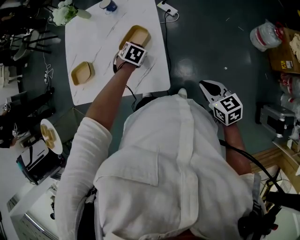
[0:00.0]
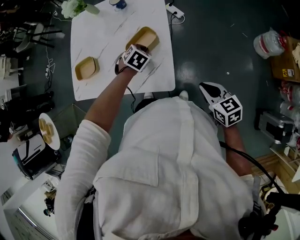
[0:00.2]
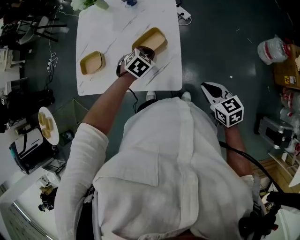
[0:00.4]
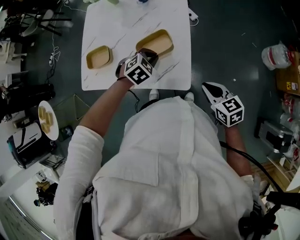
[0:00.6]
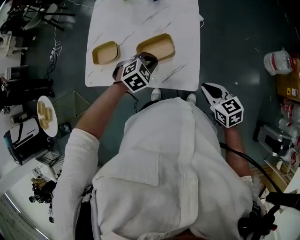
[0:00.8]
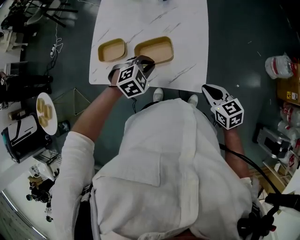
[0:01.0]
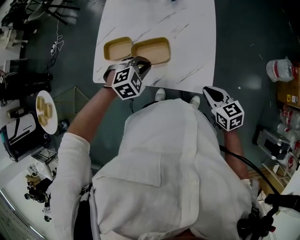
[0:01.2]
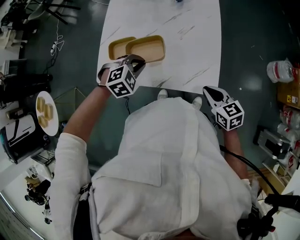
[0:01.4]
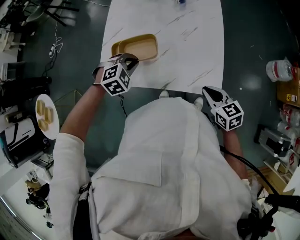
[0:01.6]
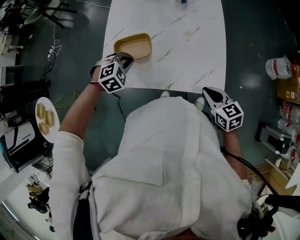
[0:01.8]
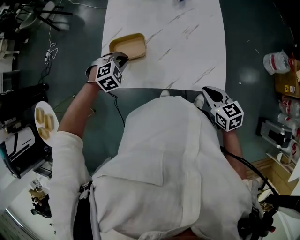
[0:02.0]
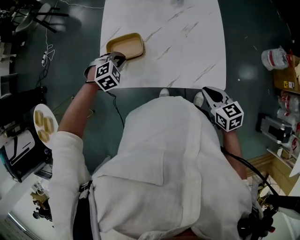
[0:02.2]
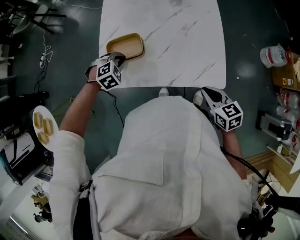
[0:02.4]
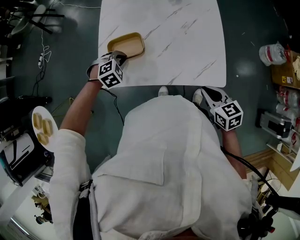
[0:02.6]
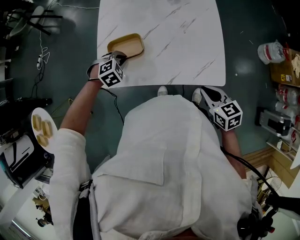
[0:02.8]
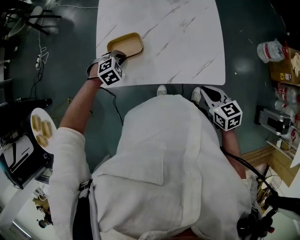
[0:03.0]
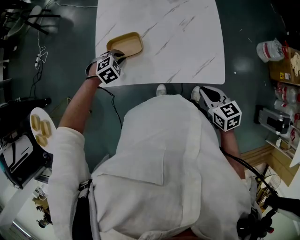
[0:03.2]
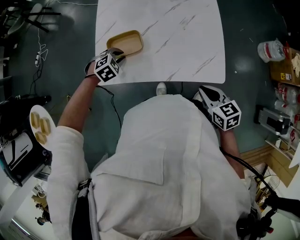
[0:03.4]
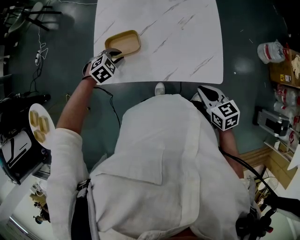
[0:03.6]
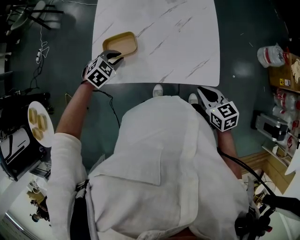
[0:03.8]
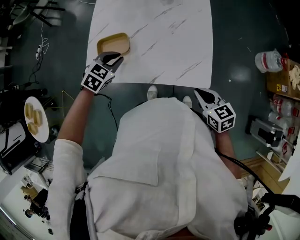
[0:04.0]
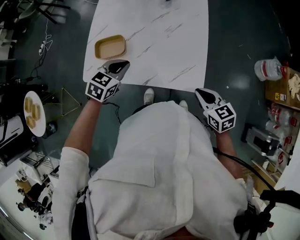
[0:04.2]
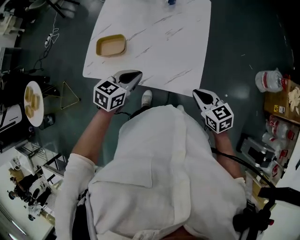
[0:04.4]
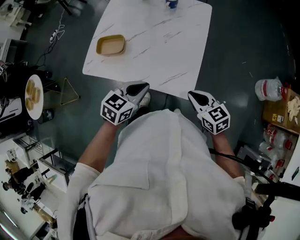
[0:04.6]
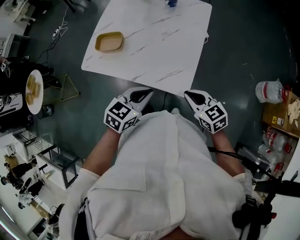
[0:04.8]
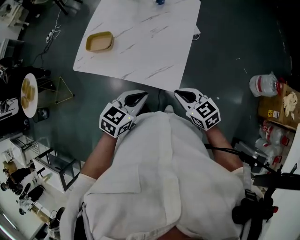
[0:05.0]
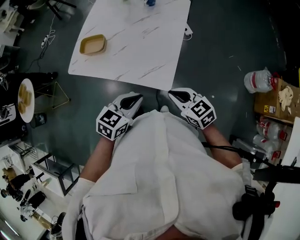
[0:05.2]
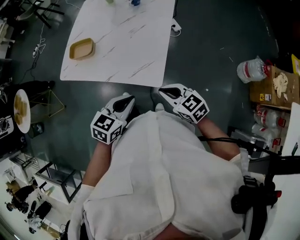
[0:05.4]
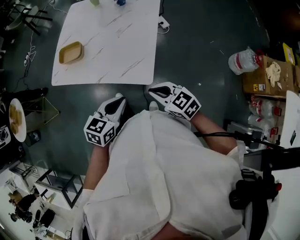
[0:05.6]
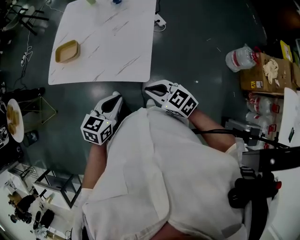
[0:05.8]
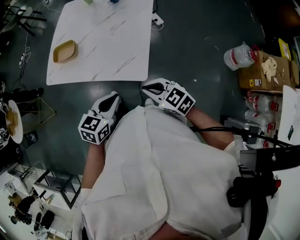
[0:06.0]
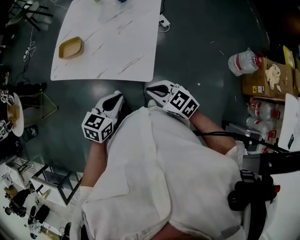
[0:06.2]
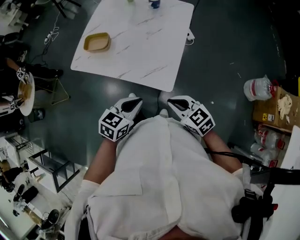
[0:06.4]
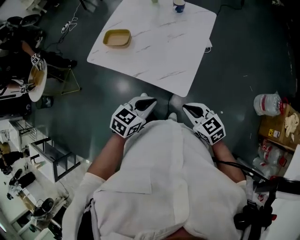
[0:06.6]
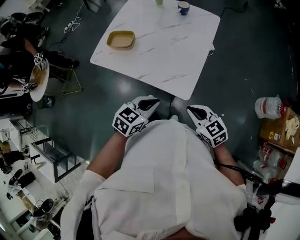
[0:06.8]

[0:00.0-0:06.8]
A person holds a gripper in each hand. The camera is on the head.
0:00.0 to 0:01.4: Both grippers move to the left, some 25 cm. The left gripper rotates approximately 30 degrees.
0:01.4 to 0:02.8: The left gripper heads to the left, downward and forward, covering about 15 cm, while the right gripper travels to the left by approximately 10 cm.
0:02.8 to 0:04.0: The left gripper heads to the right and upward, covering approximately 10 cm, and swivels some 30 degrees. The right gripper is displaced to the right by approximately 5 cm.
0:04.0 to 0:05.4: The right gripper goes approximately 10 cm to the right, and swivels some 30 degrees, while the left gripper heads to the right and backward, covering some 35 cm, and rotates roughly 30 degrees.
0:05.4 to 0:06.8: The grippers stay close to where they were, moving slightly.

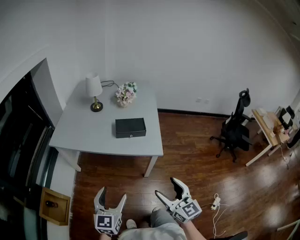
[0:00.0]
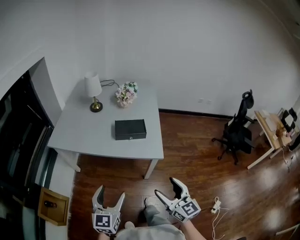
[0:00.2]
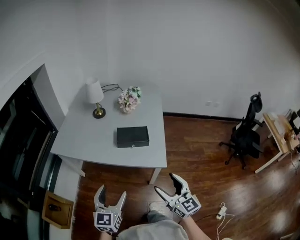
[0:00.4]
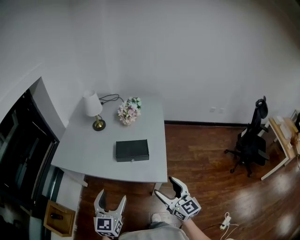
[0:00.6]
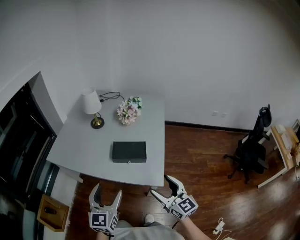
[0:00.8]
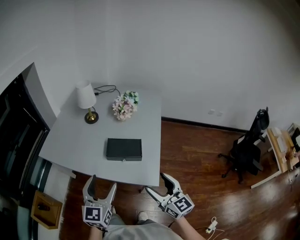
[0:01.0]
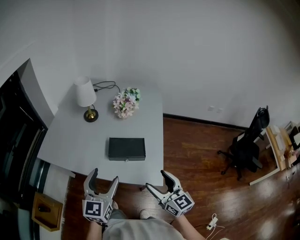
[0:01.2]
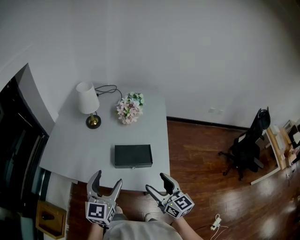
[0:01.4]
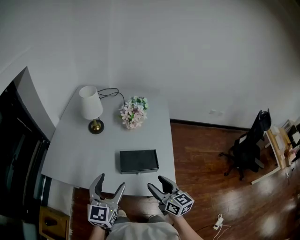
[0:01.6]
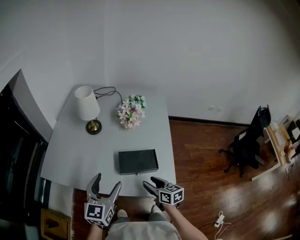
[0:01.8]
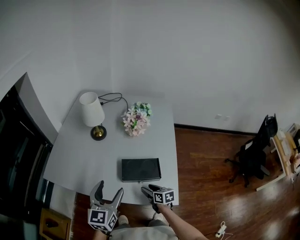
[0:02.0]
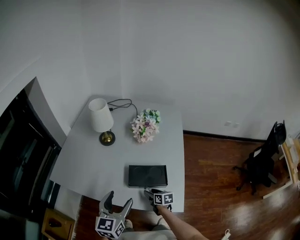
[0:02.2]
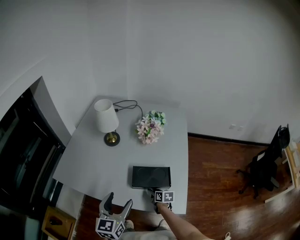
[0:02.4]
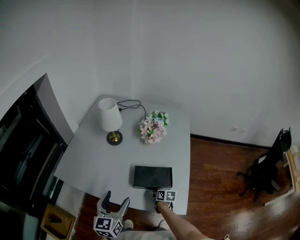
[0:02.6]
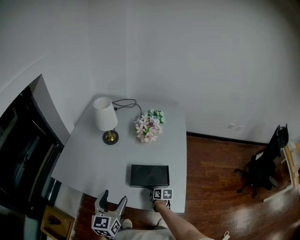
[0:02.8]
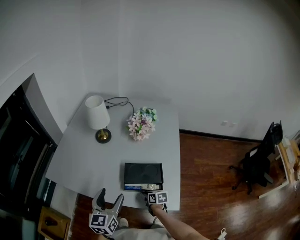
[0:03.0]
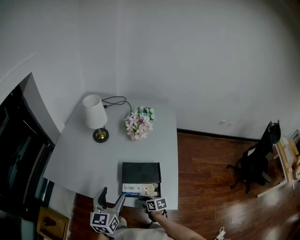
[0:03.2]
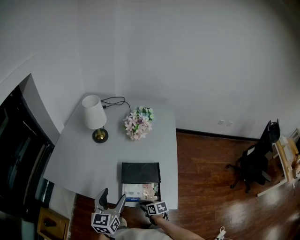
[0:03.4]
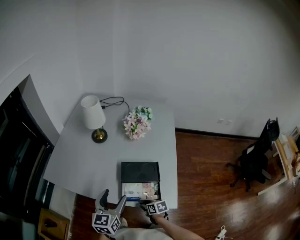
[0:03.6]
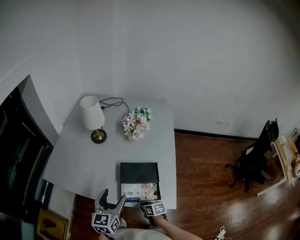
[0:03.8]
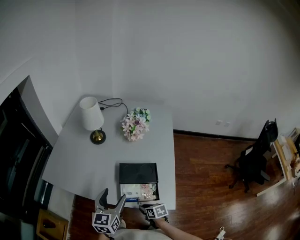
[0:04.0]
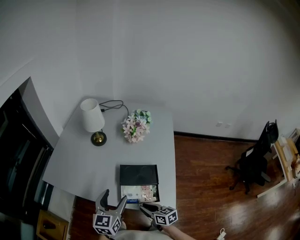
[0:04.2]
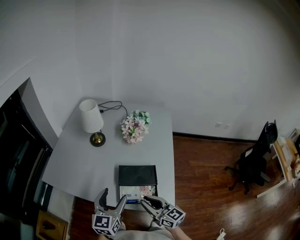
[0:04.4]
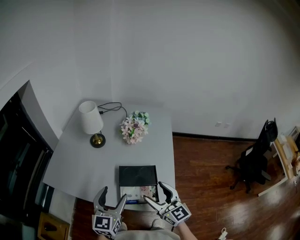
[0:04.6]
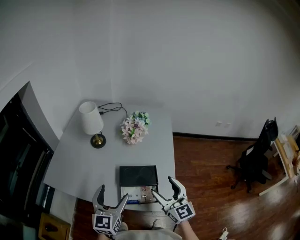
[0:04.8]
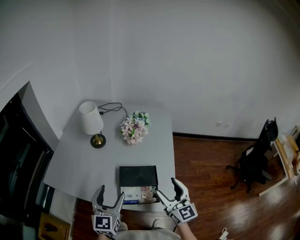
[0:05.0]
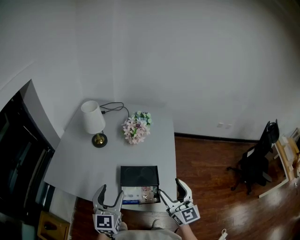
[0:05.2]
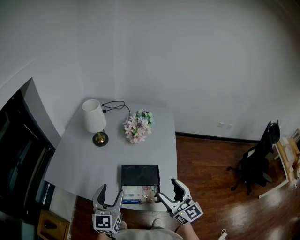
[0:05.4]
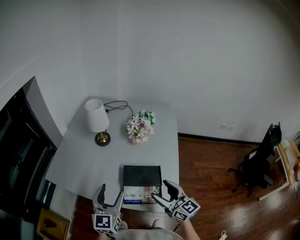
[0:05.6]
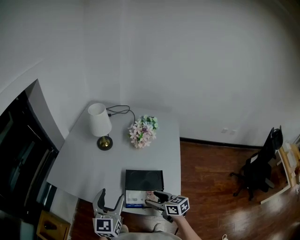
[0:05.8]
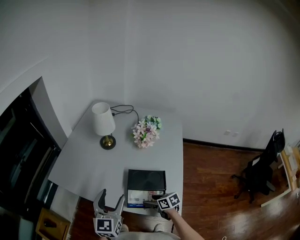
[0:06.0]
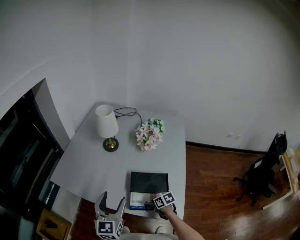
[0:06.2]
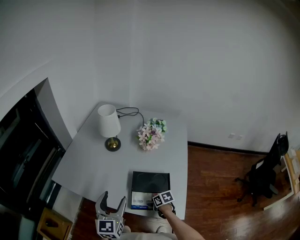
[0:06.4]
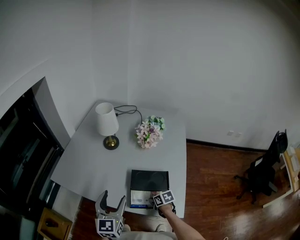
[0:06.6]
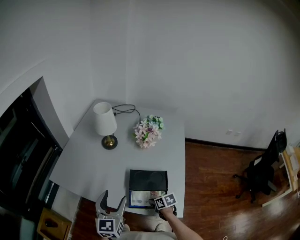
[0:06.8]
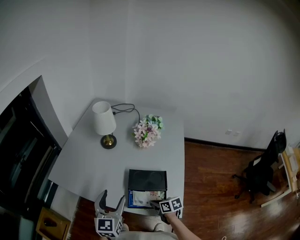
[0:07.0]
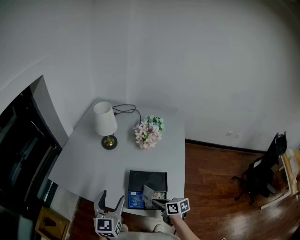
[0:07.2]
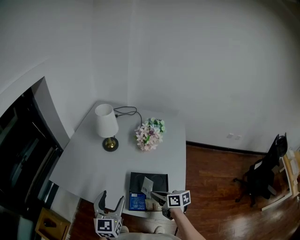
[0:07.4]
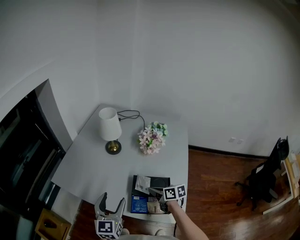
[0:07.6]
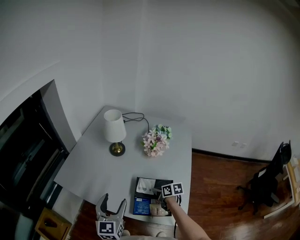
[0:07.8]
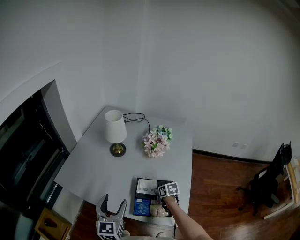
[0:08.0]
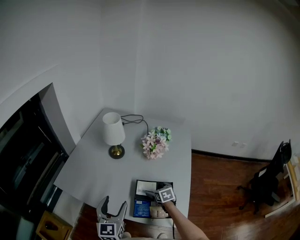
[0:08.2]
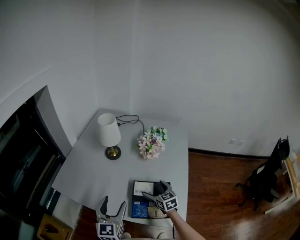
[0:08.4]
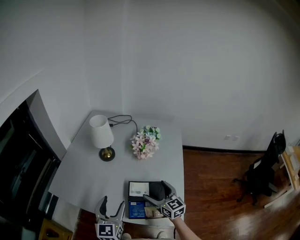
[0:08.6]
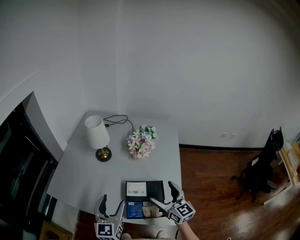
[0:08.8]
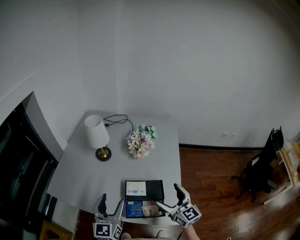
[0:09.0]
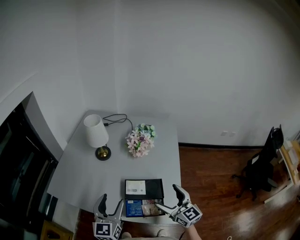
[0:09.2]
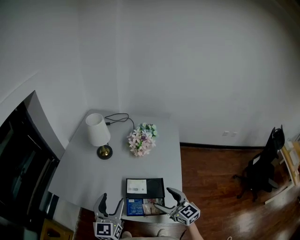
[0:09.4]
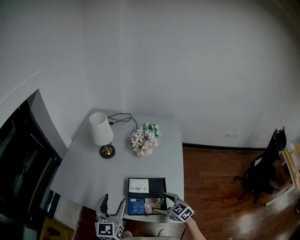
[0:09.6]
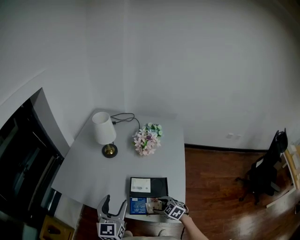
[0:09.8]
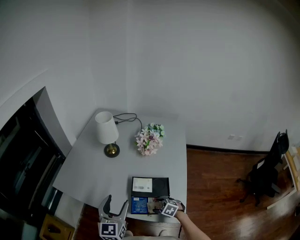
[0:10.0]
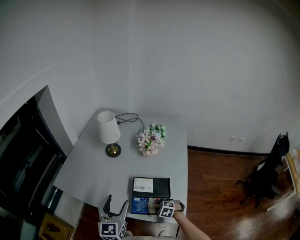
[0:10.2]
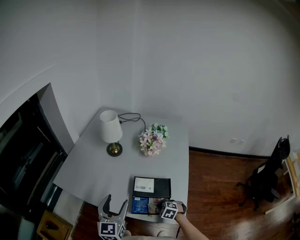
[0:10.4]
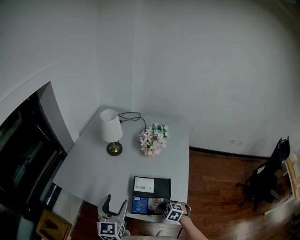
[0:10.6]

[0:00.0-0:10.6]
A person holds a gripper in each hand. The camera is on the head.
0:00.0 to 0:01.6: Both grippers move forward, about 35 cm. The right gripper changes its angle by some 20 degrees.
0:01.6 to 0:03.0: The left gripper travels downward by approximately 5 cm. The right gripper shifts some 30 cm downward, angles its fingers downward, by approximately 30 degrees, and closes its fingers.
0:03.0 to 0:04.6: The left gripper moves roughly 5 cm, while the right gripper goes approximately 30 cm upward, angles its fingers upward, by approximately 50 degrees, and opens.
0:04.6 to 0:06.0: The left gripper moves about 5 cm; the right gripper shifts about 25 cm downward, and angles its fingers downward, by roughly 40 degrees.
0:06.0 to 0:07.6: The right gripper shifts approximately 10 cm upward and forward, and closes up.
0:07.6 to 0:09.0: The left gripper shifts by some 5 cm; the right gripper heads upward, to the right and backward, covering about 20 cm, swivels roughly 60 degrees, and opens its fingers.
0:09.0 to 0:10.6: The right gripper shifts some 25 cm downward, tips its fingers downward by approximately 60 degrees, and closes.

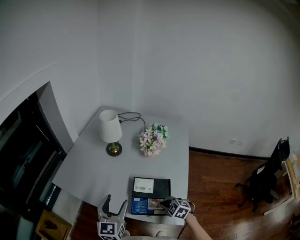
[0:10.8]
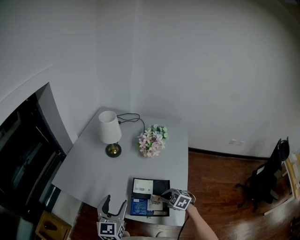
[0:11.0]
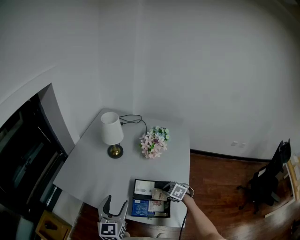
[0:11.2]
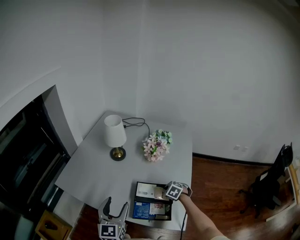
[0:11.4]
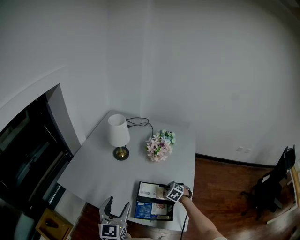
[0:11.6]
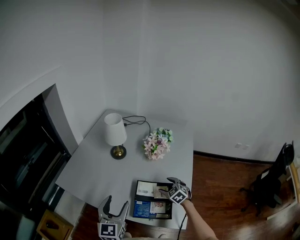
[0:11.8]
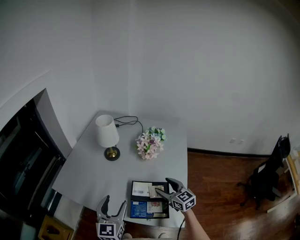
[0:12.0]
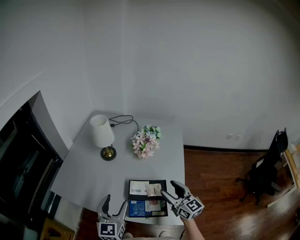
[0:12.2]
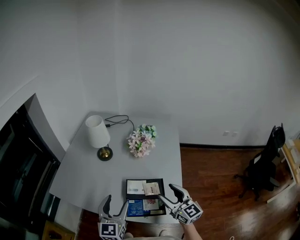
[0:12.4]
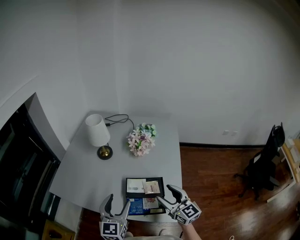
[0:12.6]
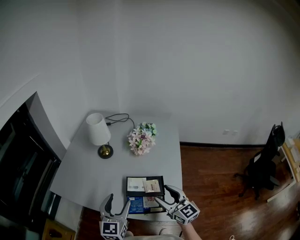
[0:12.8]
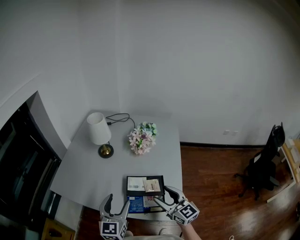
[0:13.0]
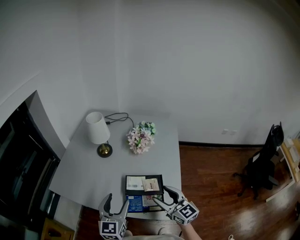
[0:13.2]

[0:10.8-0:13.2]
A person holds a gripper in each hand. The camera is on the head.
0:10.8 to 0:12.0: The right gripper is displaced upward and forward by some 15 cm, tilts its fingers approximately 40 degrees upward, and opens up.
0:12.0 to 0:13.2: The right gripper moves backward and upward, approximately 10 cm.

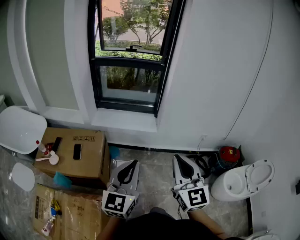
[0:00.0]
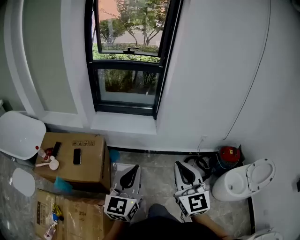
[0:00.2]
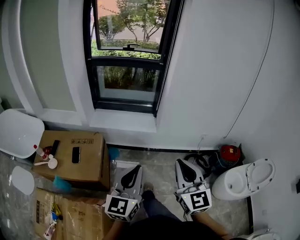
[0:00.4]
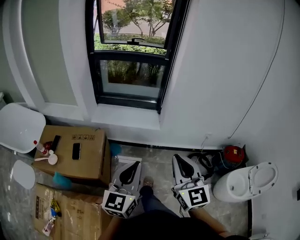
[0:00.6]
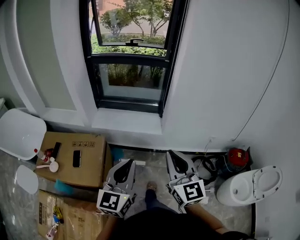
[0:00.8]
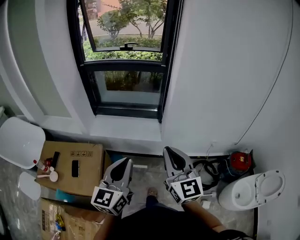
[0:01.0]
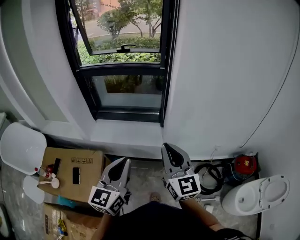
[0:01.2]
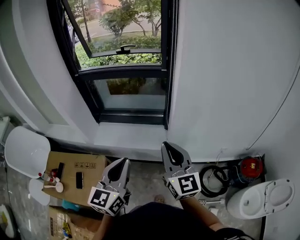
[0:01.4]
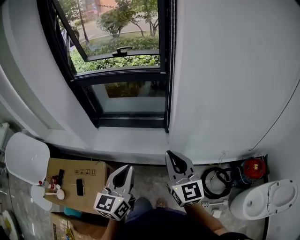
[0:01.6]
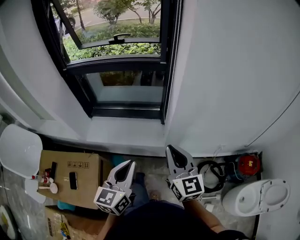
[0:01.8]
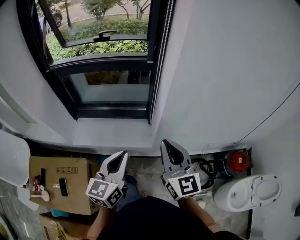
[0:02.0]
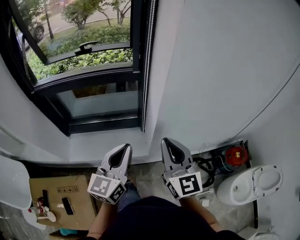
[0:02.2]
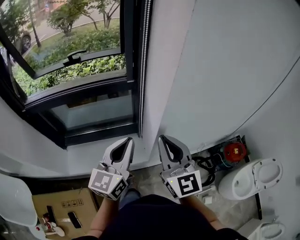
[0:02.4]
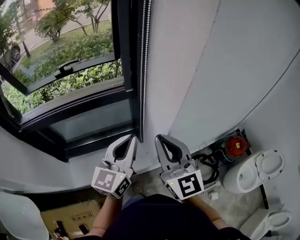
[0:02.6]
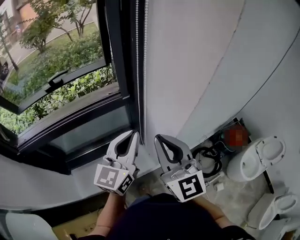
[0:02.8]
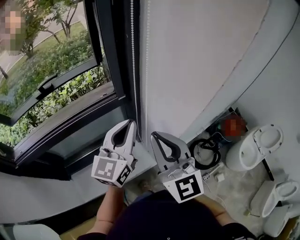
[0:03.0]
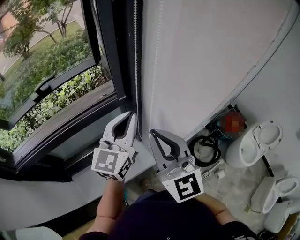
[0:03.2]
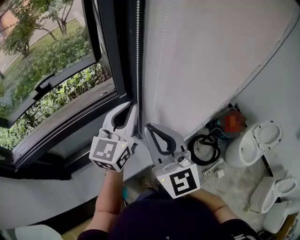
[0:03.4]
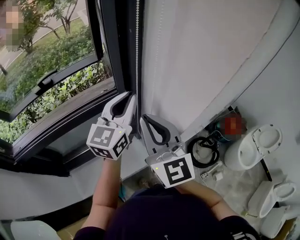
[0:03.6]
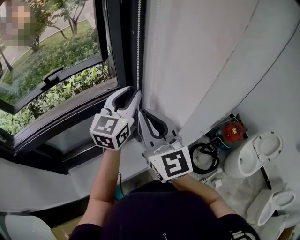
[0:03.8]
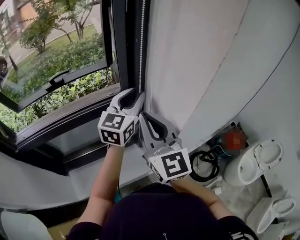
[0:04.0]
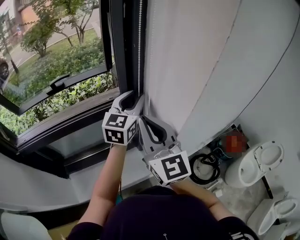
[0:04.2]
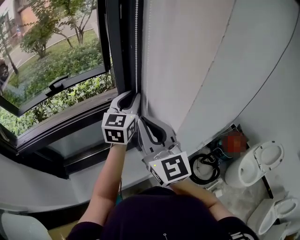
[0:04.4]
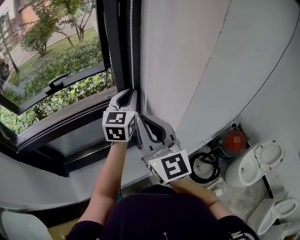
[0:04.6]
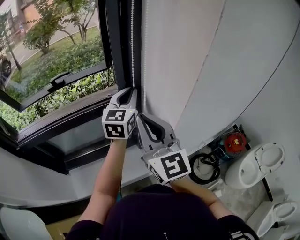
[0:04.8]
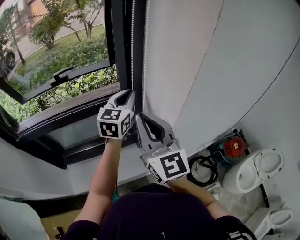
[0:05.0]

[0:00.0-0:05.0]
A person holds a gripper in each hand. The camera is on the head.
0:00.0 to 0:01.6: The two grippers go about 40 cm forward.
0:01.6 to 0:03.4: The left gripper changes place by about 50 cm, and rotates about 40 degrees; the right gripper shifts by roughly 35 cm, and changes its angle by about 30 degrees.
0:03.4 to 0:05.0: The left gripper is displaced forward by roughly 5 cm, and opens, then closes once more.
